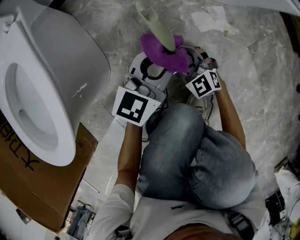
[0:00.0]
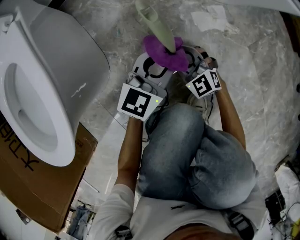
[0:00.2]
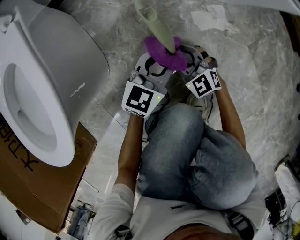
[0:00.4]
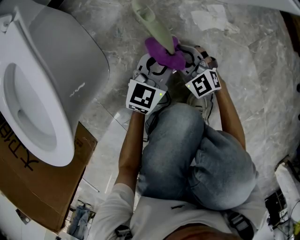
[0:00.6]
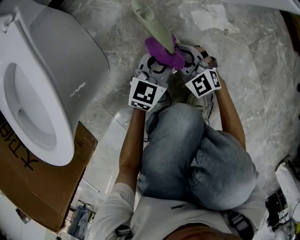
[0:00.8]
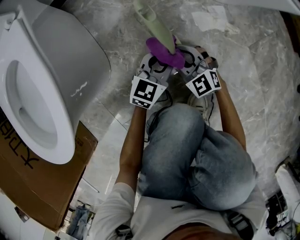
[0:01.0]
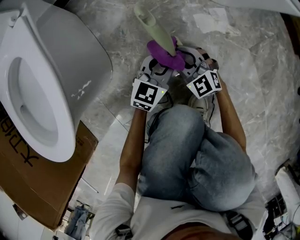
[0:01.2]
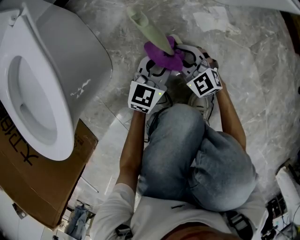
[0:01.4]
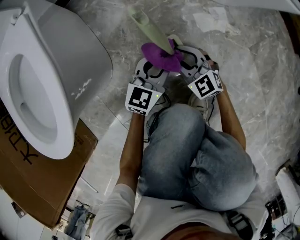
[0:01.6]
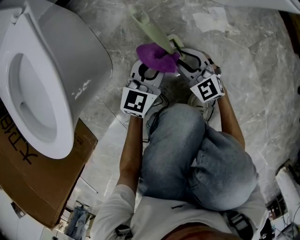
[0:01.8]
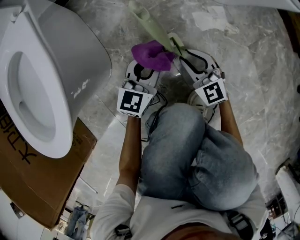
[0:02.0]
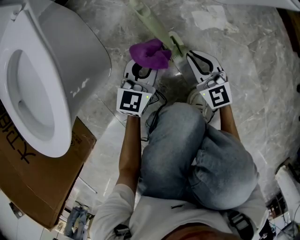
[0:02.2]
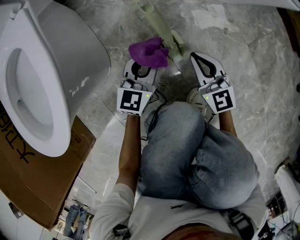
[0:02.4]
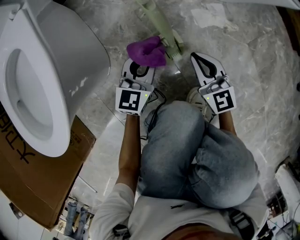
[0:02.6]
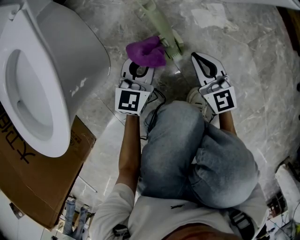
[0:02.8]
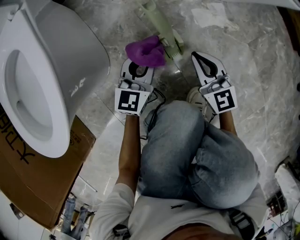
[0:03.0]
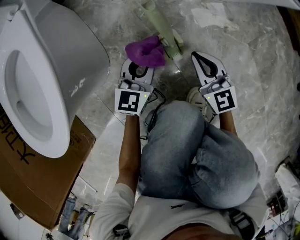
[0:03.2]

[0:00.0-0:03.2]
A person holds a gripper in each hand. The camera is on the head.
0:00.0 to 0:01.6: The left gripper shifts approximately 10 cm downward.
0:01.6 to 0:03.2: The right gripper is displaced upward and to the right by about 10 cm, changes its angle by approximately 30 degrees, and closes its fingers.

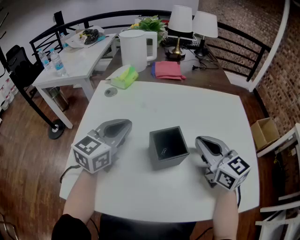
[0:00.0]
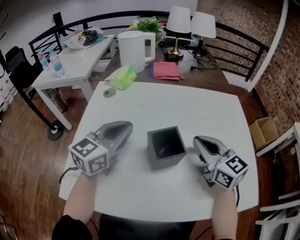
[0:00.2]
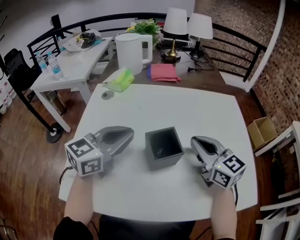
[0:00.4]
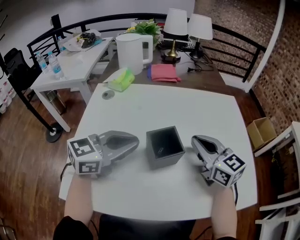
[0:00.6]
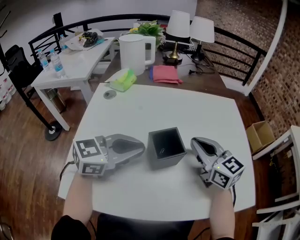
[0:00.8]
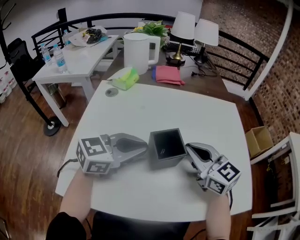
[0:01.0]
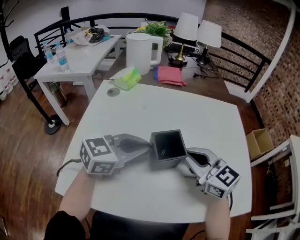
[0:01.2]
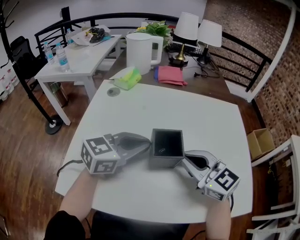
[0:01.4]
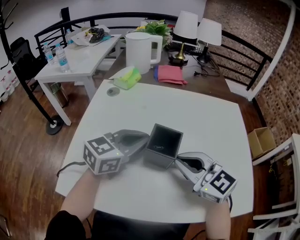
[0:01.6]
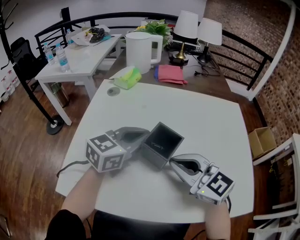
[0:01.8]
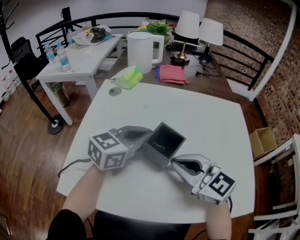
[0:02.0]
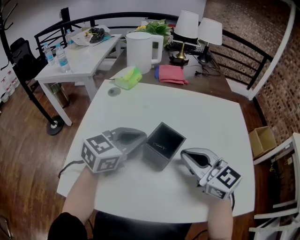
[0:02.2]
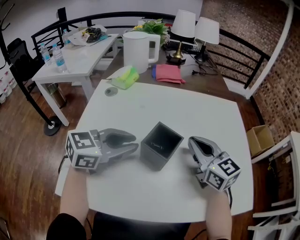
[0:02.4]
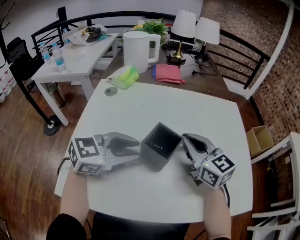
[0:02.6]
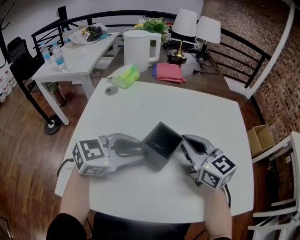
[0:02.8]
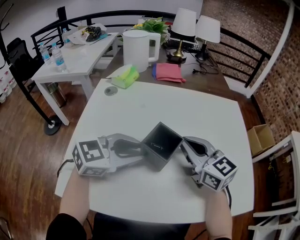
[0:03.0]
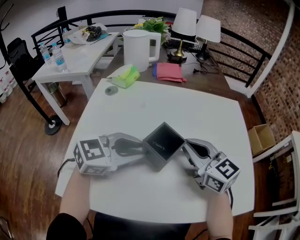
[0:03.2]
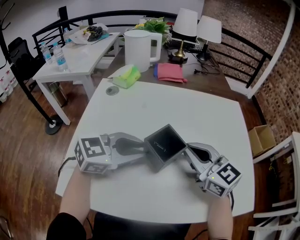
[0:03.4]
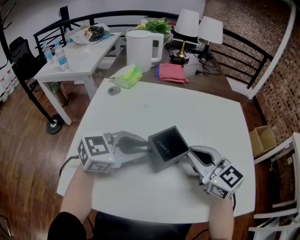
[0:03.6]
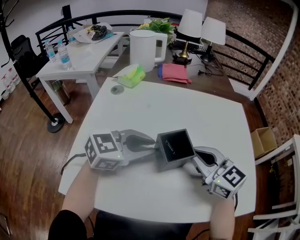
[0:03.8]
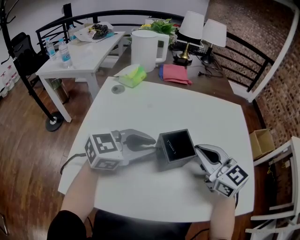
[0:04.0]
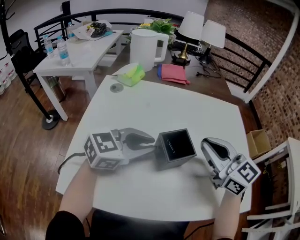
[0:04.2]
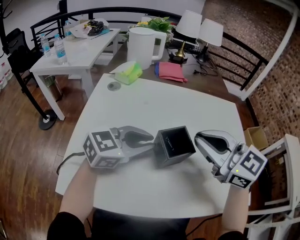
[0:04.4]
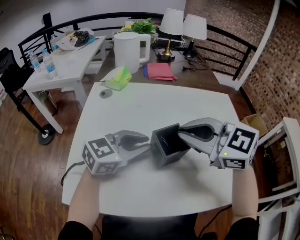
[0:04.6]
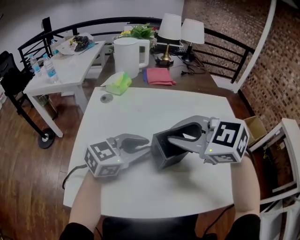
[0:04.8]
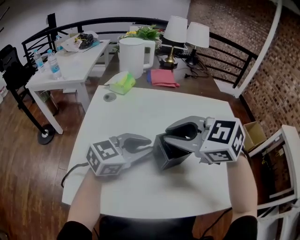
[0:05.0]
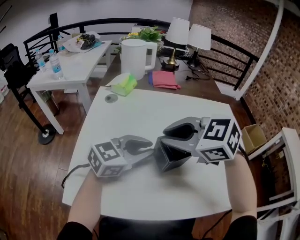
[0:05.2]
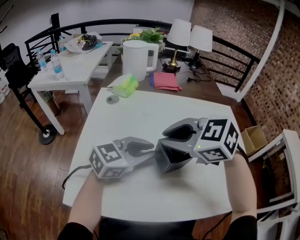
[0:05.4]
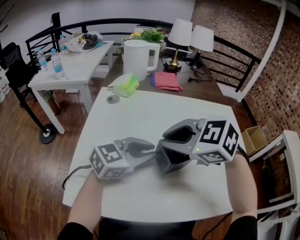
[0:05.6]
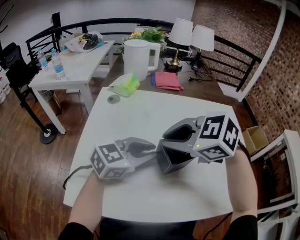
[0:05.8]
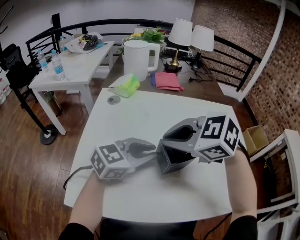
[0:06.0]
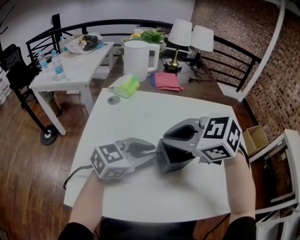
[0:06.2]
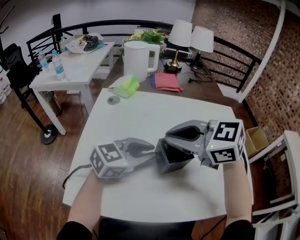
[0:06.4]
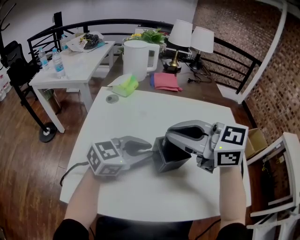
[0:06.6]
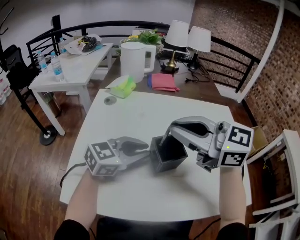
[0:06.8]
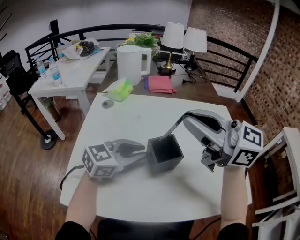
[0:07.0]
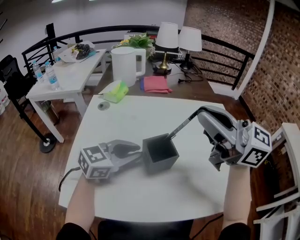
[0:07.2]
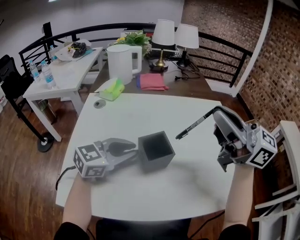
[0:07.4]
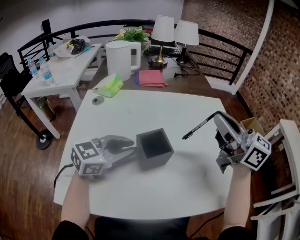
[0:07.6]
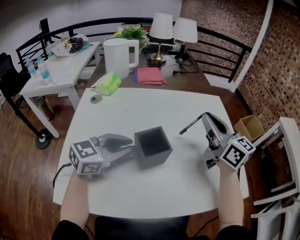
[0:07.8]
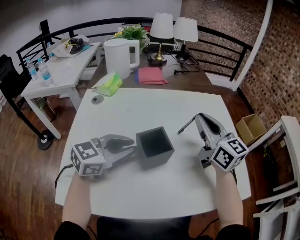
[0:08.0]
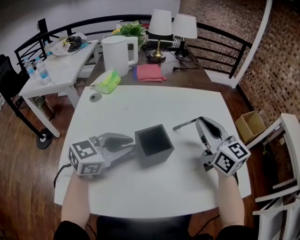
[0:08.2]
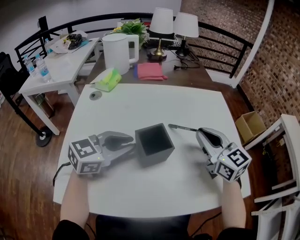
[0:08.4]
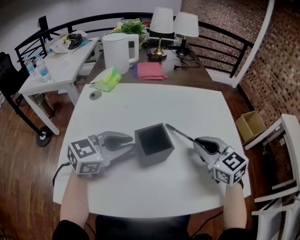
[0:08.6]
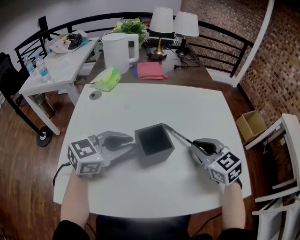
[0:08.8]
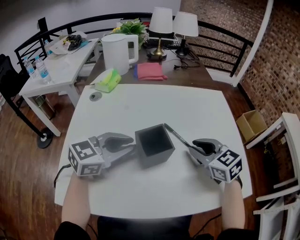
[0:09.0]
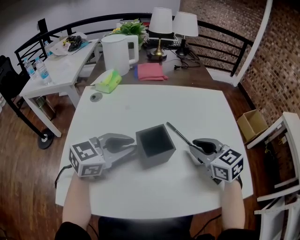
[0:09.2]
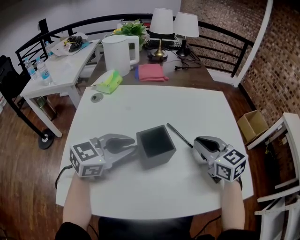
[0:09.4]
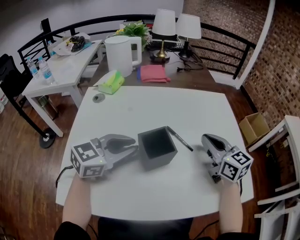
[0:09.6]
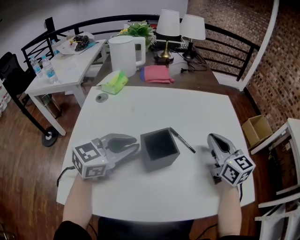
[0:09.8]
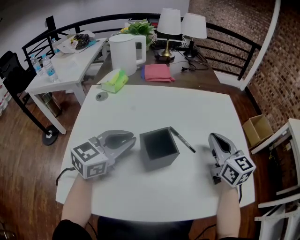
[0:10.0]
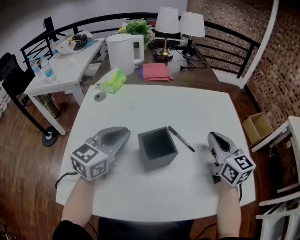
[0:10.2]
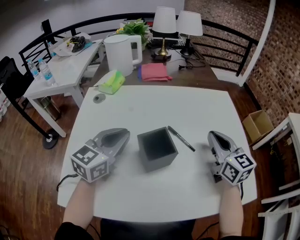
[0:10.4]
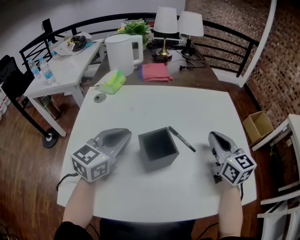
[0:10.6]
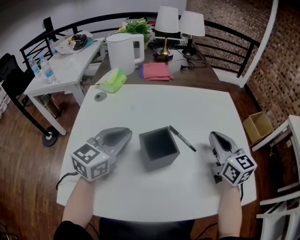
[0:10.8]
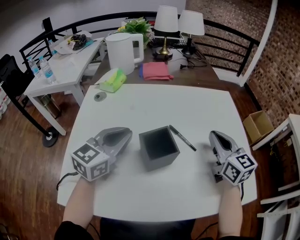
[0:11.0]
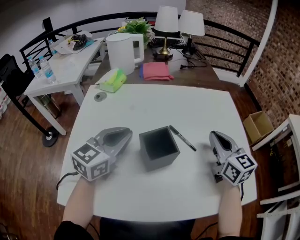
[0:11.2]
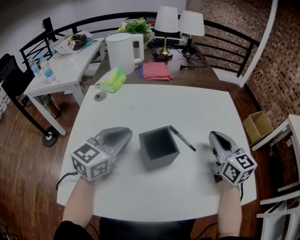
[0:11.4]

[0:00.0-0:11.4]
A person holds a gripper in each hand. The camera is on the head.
0:00.0 to 0:01.4: The left gripper travels to the right and backward by roughly 10 cm, and turns by about 20 degrees, while the right gripper is displaced backward and to the left by some 10 cm.
0:01.4 to 0:02.8: The left gripper opens; the right gripper shifts roughly 5 cm forward.
0:02.8 to 0:04.2: The right gripper shifts roughly 5 cm upward.
0:04.2 to 0:05.6: The right gripper shifts by some 15 cm, and points its fingers approximately 30 degrees further downward.
0:05.6 to 0:07.2: The right gripper goes approximately 15 cm upward, and angles its fingers upward, by roughly 50 degrees.
0:07.2 to 0:08.6: The right gripper goes some 20 cm downward, and angles its fingers downward, by some 40 degrees.
0:08.6 to 0:10.0: The right gripper moves roughly 5 cm, and turns by about 20 degrees.
0:10.0 to 0:11.4: The grippers make only small movements.

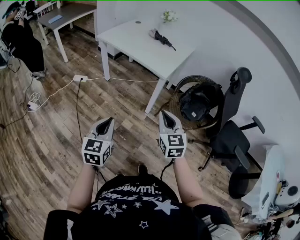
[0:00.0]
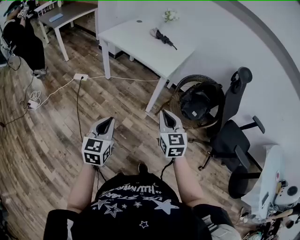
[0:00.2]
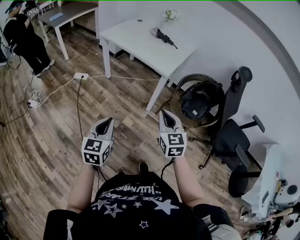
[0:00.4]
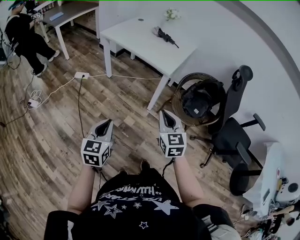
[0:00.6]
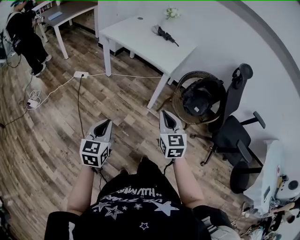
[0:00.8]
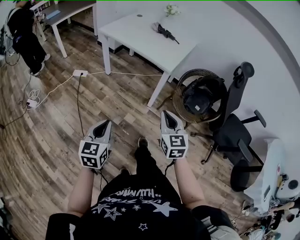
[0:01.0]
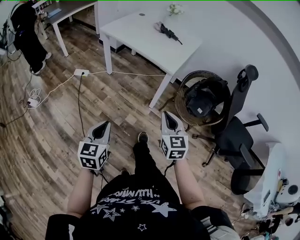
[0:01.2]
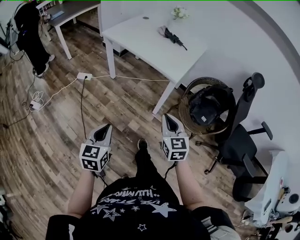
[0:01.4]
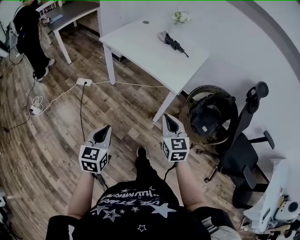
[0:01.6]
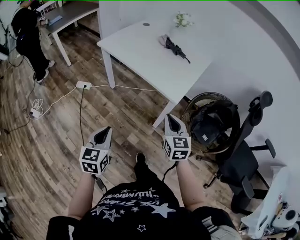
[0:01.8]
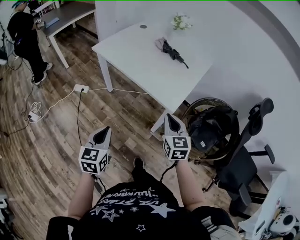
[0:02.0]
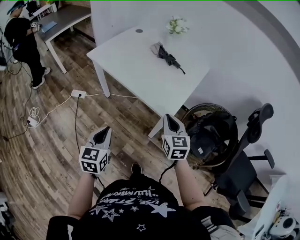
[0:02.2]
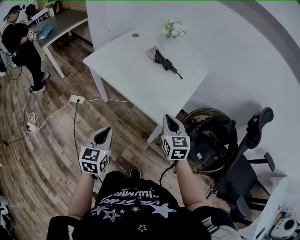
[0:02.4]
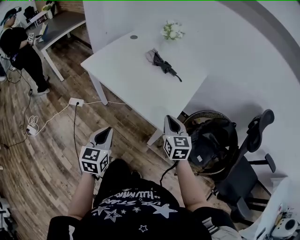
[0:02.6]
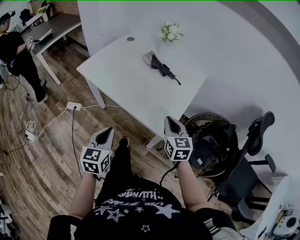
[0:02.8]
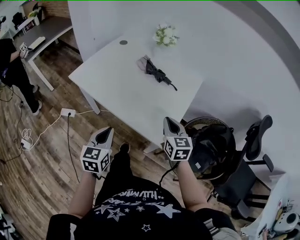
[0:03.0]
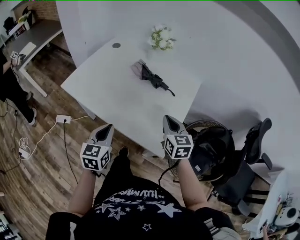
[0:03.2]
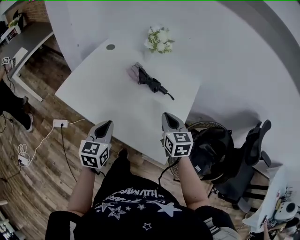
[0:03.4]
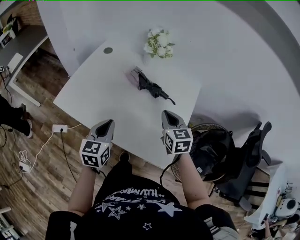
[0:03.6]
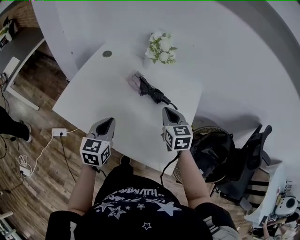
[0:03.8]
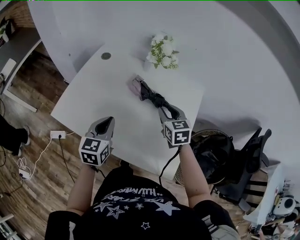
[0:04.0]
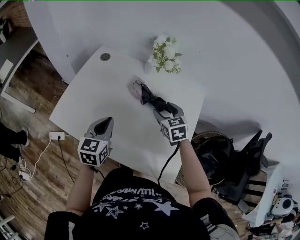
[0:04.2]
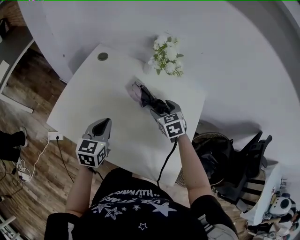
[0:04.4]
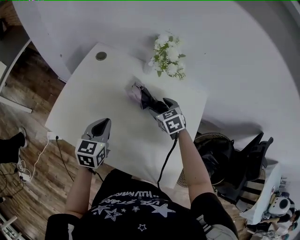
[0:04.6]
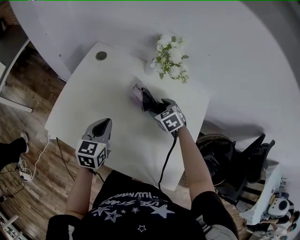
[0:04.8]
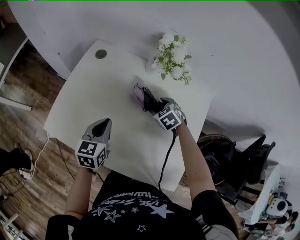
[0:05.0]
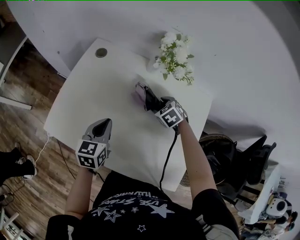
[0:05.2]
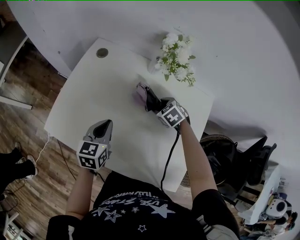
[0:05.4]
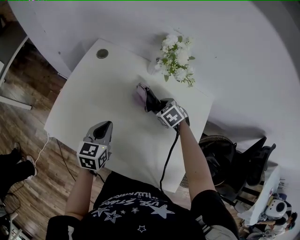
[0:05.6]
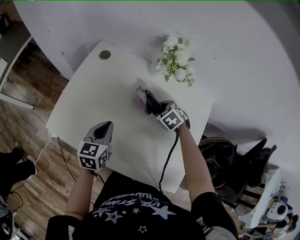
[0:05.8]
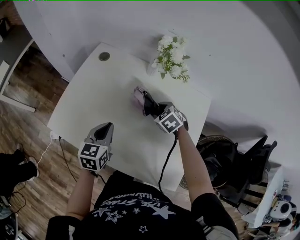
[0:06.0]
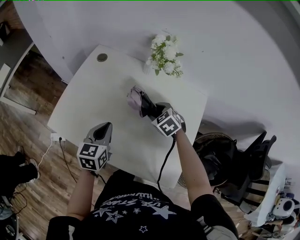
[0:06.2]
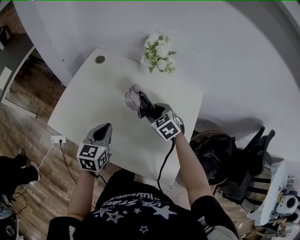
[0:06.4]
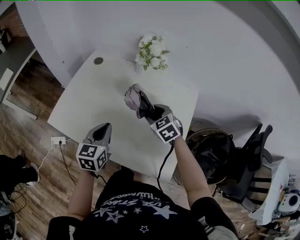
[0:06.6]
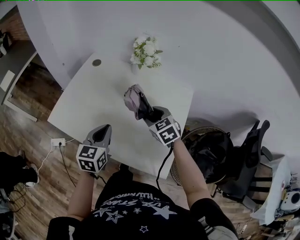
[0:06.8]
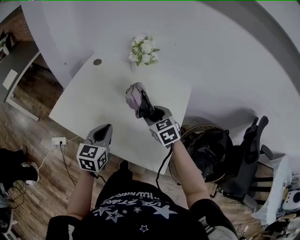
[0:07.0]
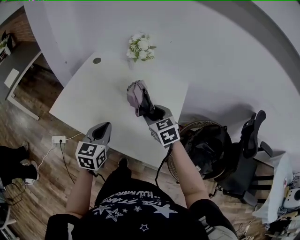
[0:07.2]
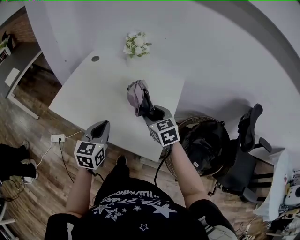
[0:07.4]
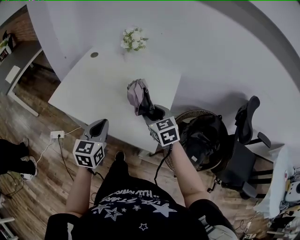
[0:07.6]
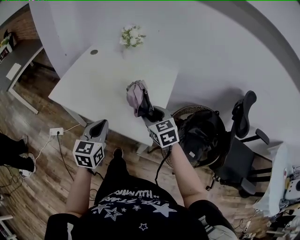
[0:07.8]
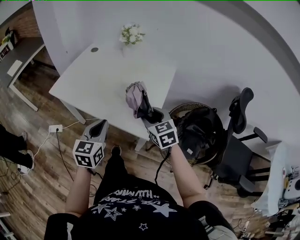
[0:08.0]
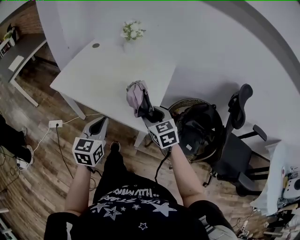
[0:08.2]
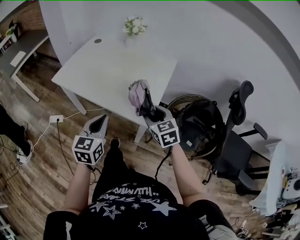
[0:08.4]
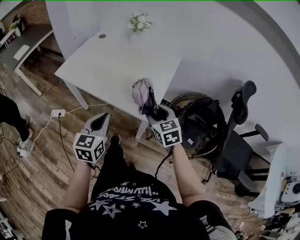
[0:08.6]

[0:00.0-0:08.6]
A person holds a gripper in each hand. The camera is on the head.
0:00.0 to 0:01.4: The right gripper heads forward and downward, covering approximately 10 cm; the left gripper travels to the left by about 5 cm.
0:01.4 to 0:02.8: Both grippers move forward, approximately 35 cm.
0:02.8 to 0:04.4: The two grippers go approximately 40 cm forward. The right gripper rotates some 30 degrees, and opens.
0:04.4 to 0:05.8: The right gripper heads downward, covering some 10 cm, rotates some 30 degrees, and closes. The left gripper ends up approximately 5 cm from where it was.
0:05.8 to 0:07.2: The right gripper goes about 25 cm backward and upward, and tips its fingers upward by roughly 30 degrees; the left gripper is displaced backward, upward and to the right by about 20 cm.
0:07.2 to 0:08.6: Both grippers travel together backward, some 25 cm.
